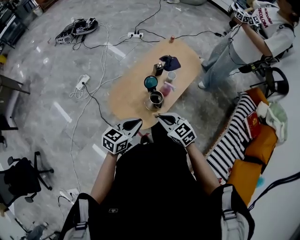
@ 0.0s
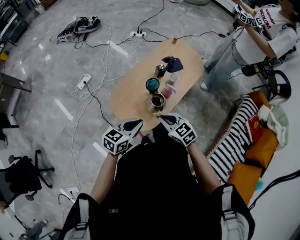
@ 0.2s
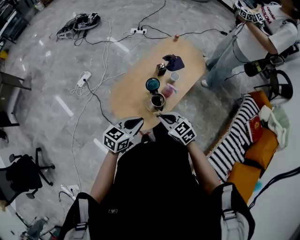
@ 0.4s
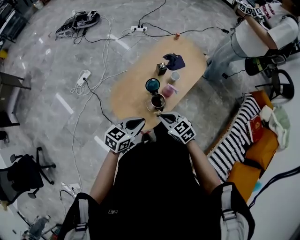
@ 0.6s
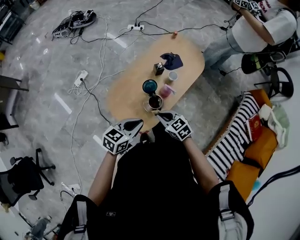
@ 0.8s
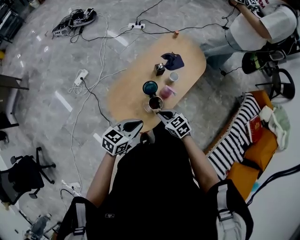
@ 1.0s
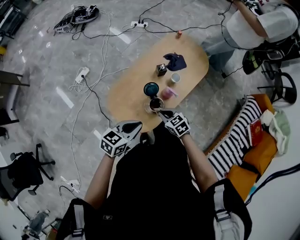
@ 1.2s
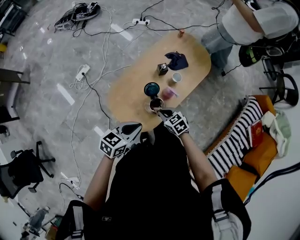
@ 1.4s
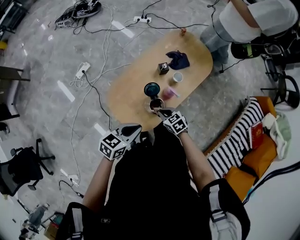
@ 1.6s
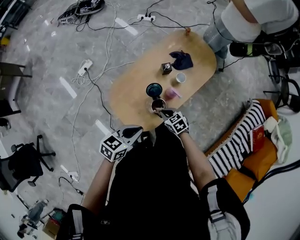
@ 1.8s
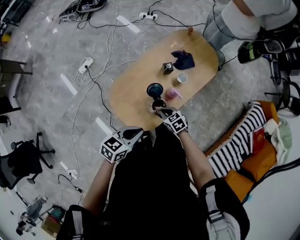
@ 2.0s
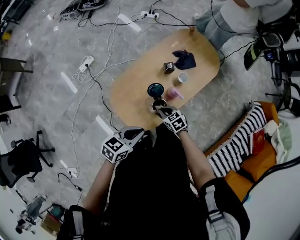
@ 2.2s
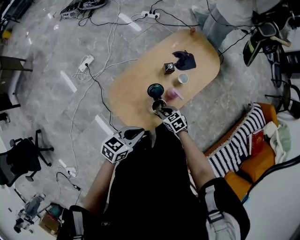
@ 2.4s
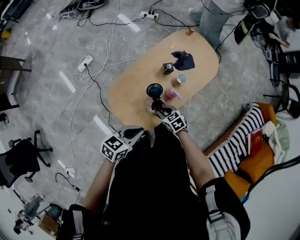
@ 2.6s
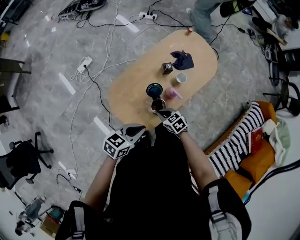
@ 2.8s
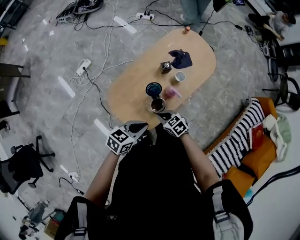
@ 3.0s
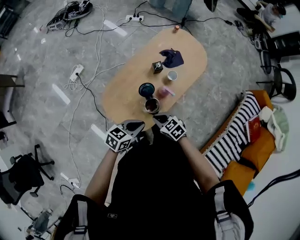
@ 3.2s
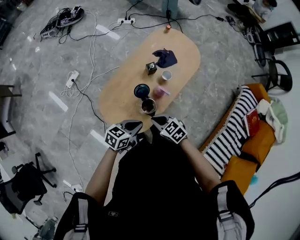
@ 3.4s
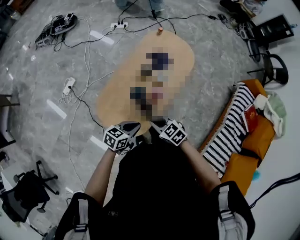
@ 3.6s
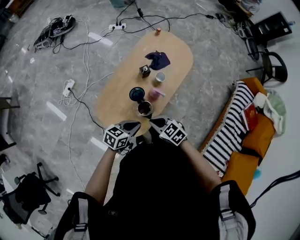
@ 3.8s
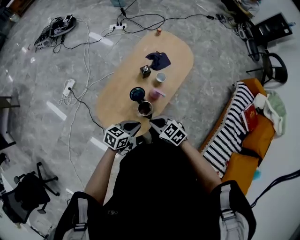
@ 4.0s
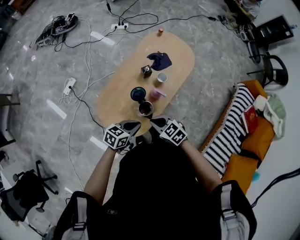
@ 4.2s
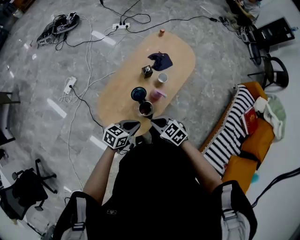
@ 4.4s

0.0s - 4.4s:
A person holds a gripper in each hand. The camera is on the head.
0.0s - 1.4s: The right gripper is displaced downward and forward by some 20 cm, while the left gripper shifts roughly 10 cm forward.
1.4s - 3.0s: There are only small adjustments of the grippers.
3.0s - 4.4s: The right gripper goes roughly 10 cm upward.

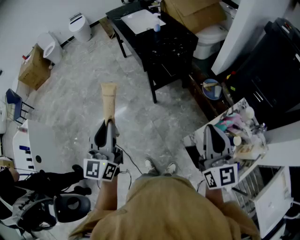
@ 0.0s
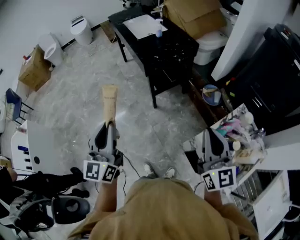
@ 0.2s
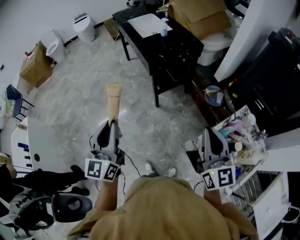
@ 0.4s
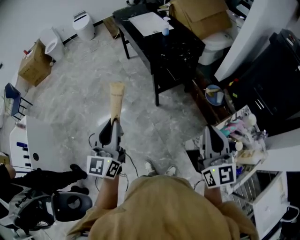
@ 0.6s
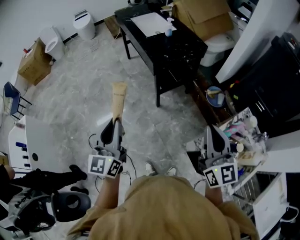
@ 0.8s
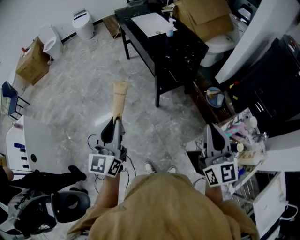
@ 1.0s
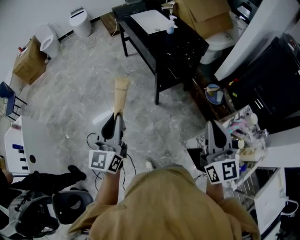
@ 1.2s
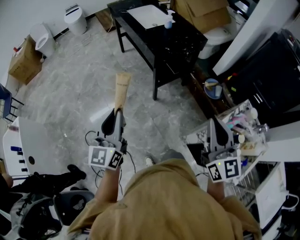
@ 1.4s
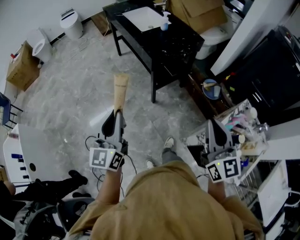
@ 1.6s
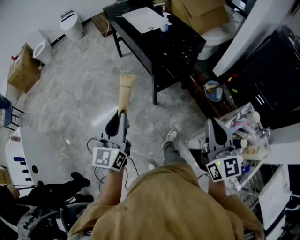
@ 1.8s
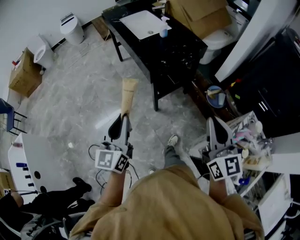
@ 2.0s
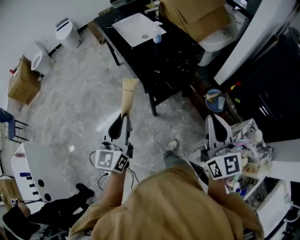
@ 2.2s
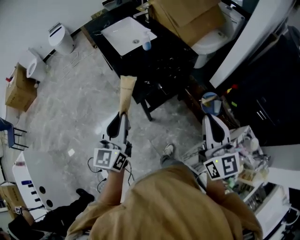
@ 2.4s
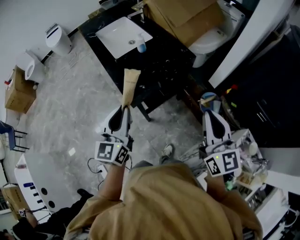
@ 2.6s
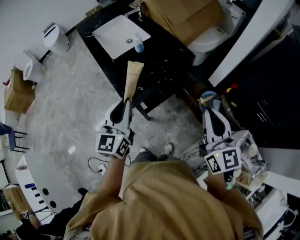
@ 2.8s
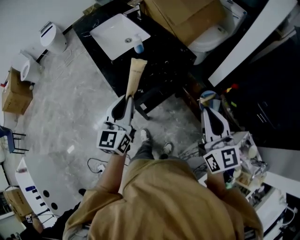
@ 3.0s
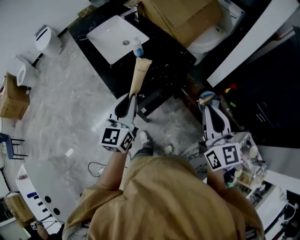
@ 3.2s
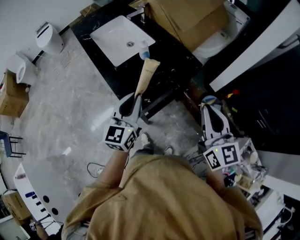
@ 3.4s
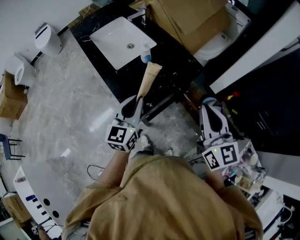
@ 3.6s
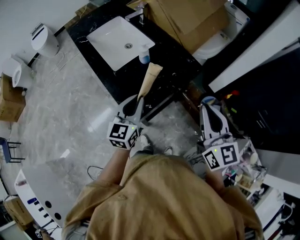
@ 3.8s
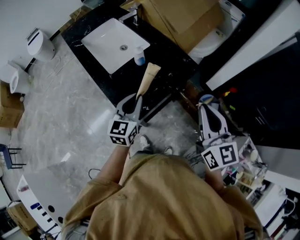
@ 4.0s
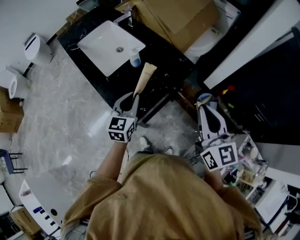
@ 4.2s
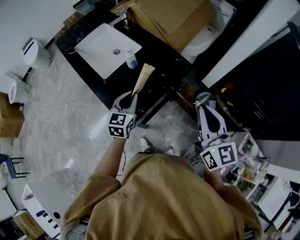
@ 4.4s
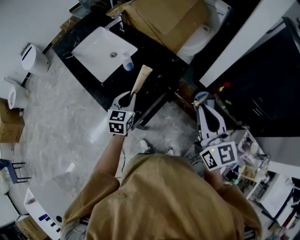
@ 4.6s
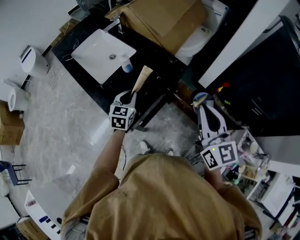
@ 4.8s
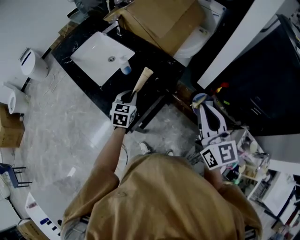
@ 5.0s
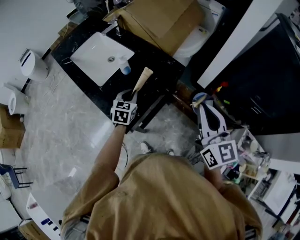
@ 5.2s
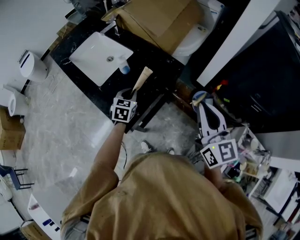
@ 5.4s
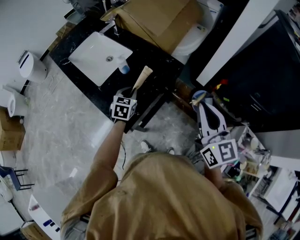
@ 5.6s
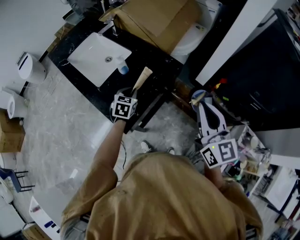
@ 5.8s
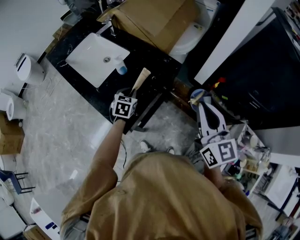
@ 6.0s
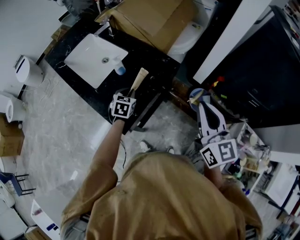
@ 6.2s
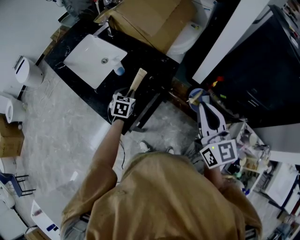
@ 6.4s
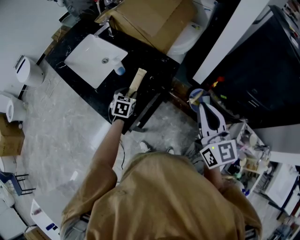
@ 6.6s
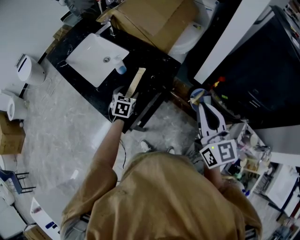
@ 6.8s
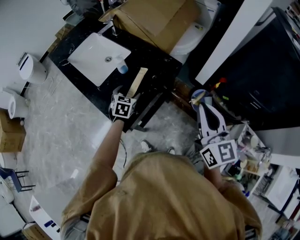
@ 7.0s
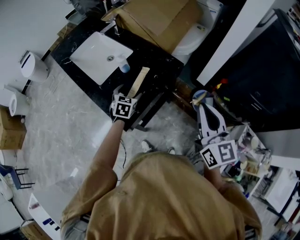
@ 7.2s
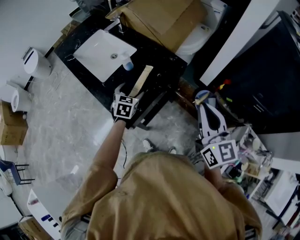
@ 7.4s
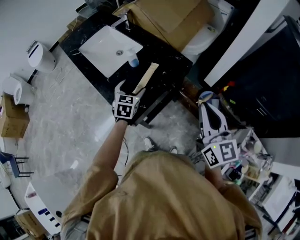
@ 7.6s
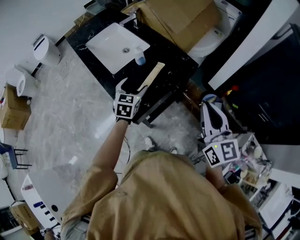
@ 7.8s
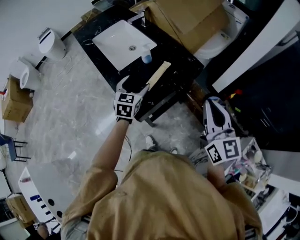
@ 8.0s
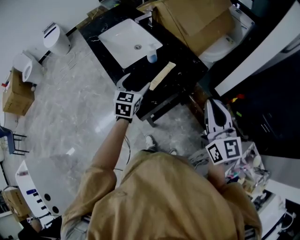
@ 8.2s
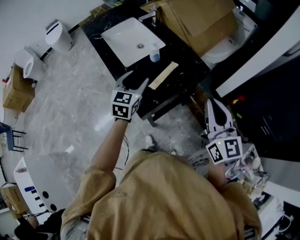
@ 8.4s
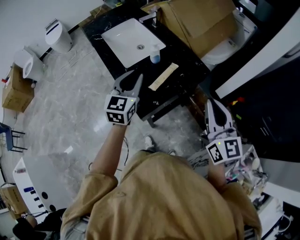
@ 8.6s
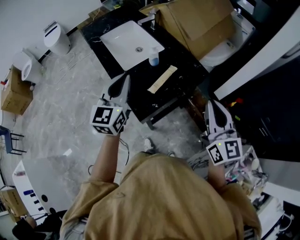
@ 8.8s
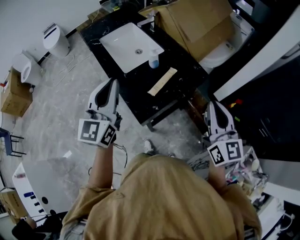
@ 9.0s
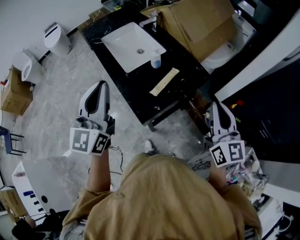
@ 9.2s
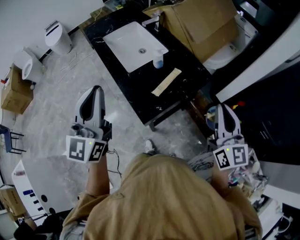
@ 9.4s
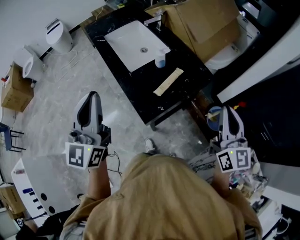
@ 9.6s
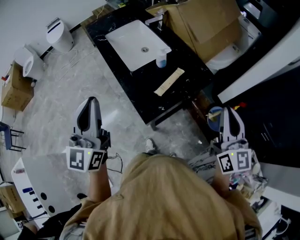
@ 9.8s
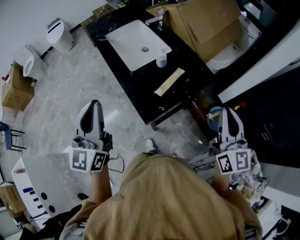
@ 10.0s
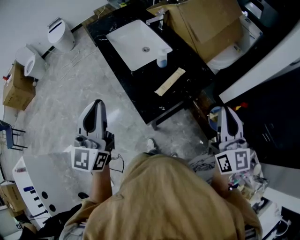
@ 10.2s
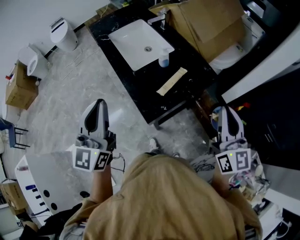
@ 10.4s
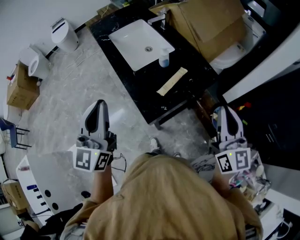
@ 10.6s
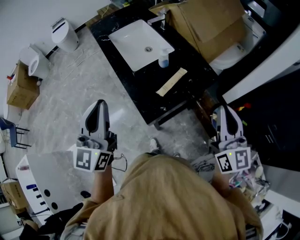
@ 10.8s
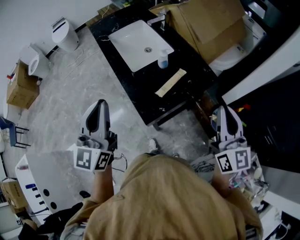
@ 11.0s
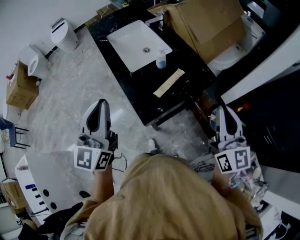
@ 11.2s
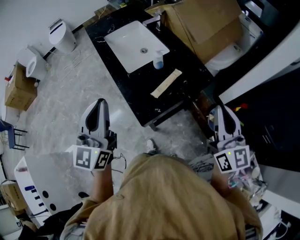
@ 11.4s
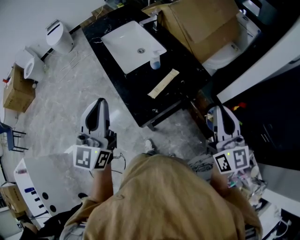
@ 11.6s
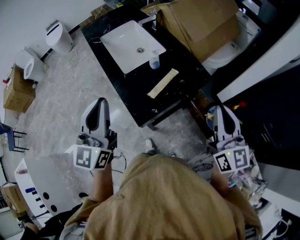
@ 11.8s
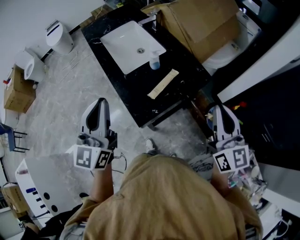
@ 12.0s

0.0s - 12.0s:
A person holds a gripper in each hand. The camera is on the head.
0.0s - 1.6s: The left gripper travels to the left and forward by about 15 cm; the right gripper travels to the left by approximately 15 cm.
1.6s - 3.0s: The pair of grippers is taken forward, about 50 cm.
3.0s - 4.4s: The right gripper travels forward by some 10 cm. The left gripper travels forward and downward by some 20 cm, and turns by some 20 degrees.
4.4s - 6.0s: The left gripper is displaced downward and forward by roughly 10 cm, and rotates approximately 20 degrees.
6.0s - 7.6s: The left gripper moves roughly 5 cm, and opens its fingers.
7.6s - 9.0s: The right gripper ends up some 5 cm from where it was. Meanwhile the left gripper shifts roughly 30 cm upward, to the left and backward, points its fingers some 40 degrees further upward, and closes up.
9.0s - 10.4s: The left gripper travels backward and to the left by approximately 10 cm.
10.4s - 12.0s: The left gripper ends up about 5 cm from where it was.

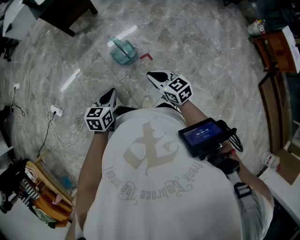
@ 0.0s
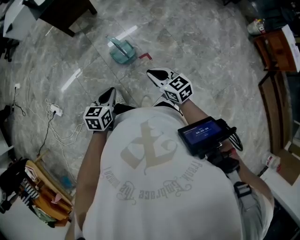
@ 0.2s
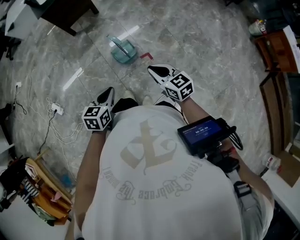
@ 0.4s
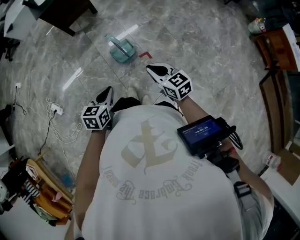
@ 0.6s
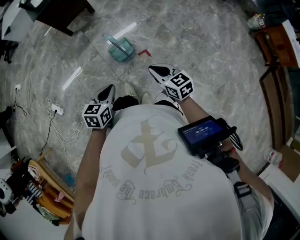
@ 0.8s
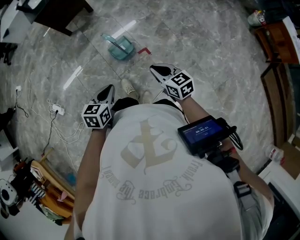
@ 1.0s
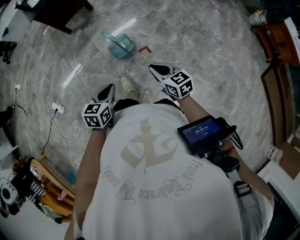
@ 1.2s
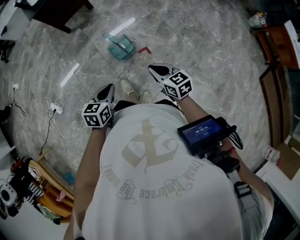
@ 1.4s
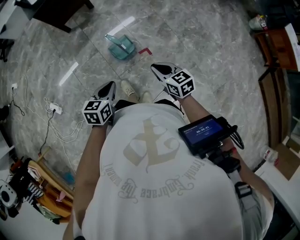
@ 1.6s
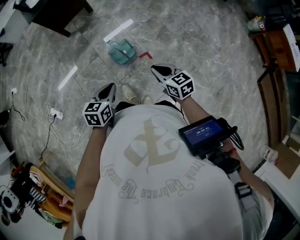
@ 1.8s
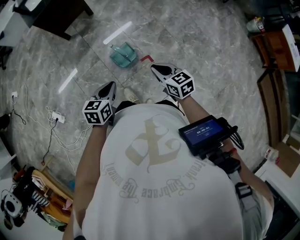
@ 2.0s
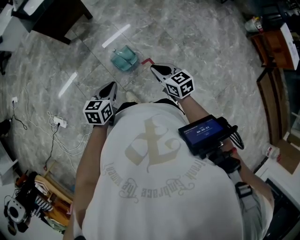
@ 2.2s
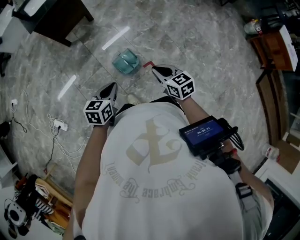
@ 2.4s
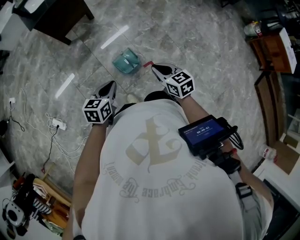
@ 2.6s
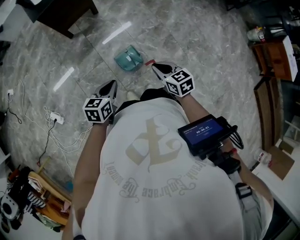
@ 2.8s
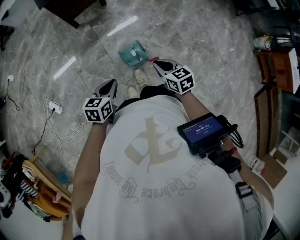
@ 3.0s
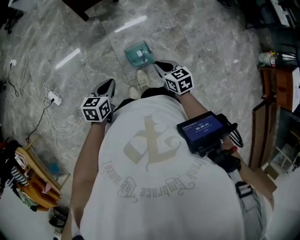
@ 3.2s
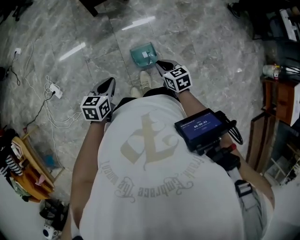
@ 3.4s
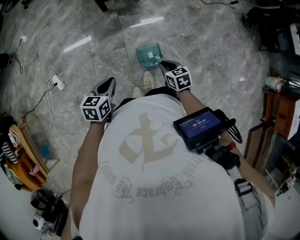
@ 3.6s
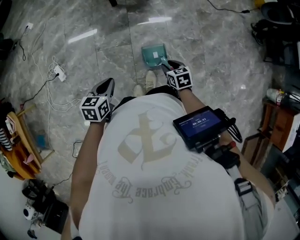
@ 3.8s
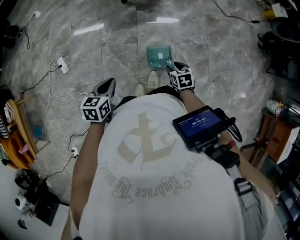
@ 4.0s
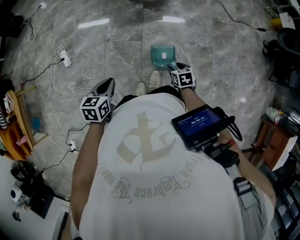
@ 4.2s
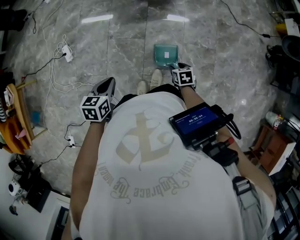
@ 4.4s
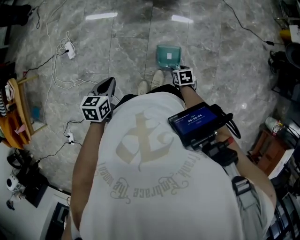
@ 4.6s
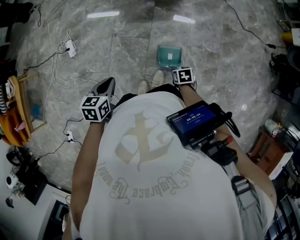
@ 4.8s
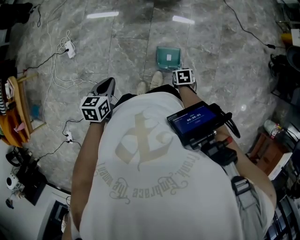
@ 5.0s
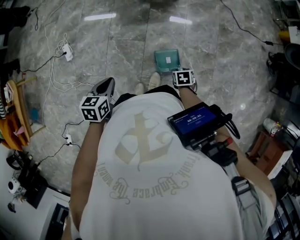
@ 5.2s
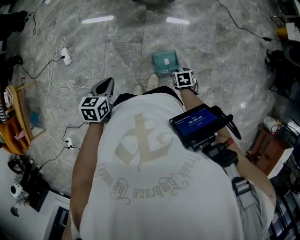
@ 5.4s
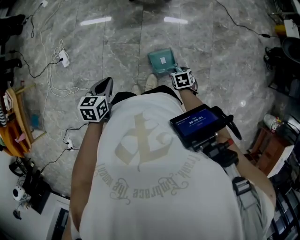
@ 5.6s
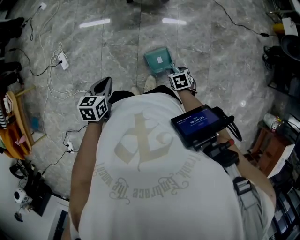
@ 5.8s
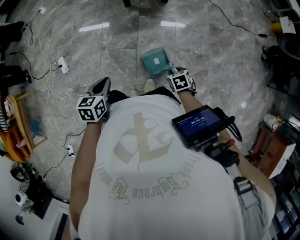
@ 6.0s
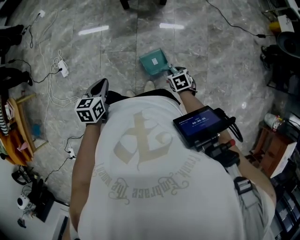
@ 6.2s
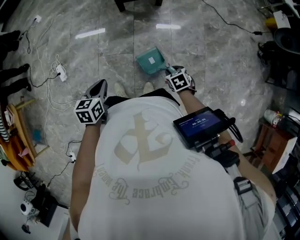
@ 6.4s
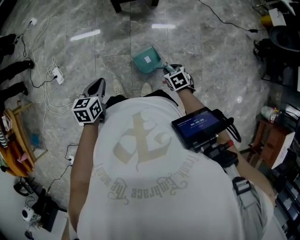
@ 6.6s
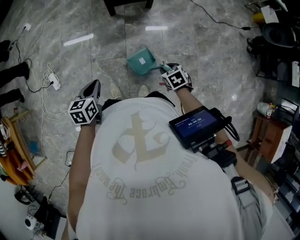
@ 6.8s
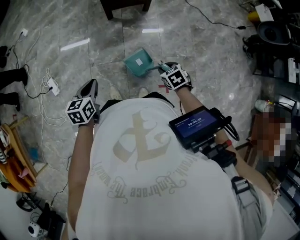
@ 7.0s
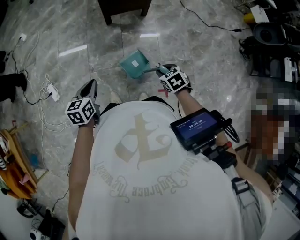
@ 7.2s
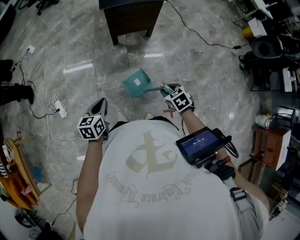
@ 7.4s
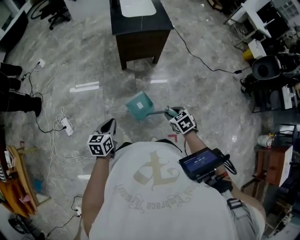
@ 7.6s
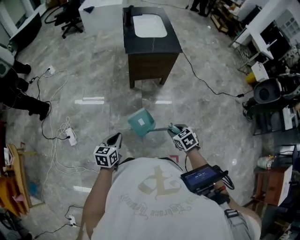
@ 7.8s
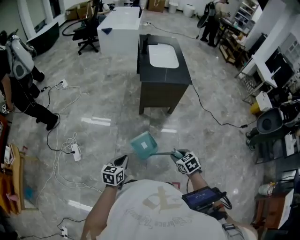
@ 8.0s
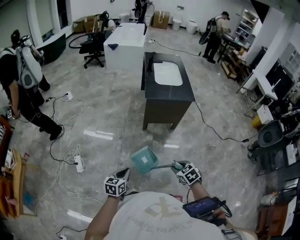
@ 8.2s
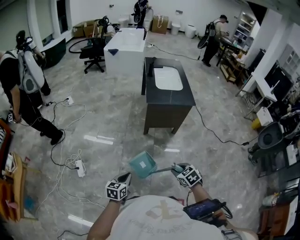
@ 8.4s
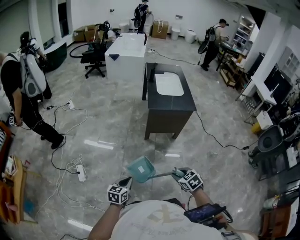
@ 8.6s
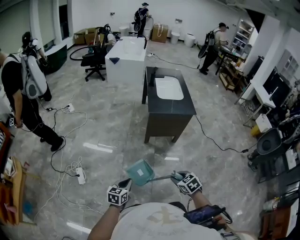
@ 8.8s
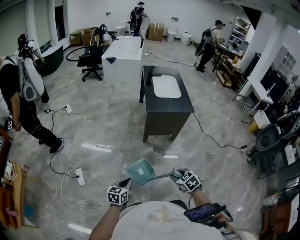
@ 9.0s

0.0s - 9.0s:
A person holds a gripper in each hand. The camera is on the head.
0.0s - 1.6s: Both grippers travel together forward, some 5 cm.
1.6s - 3.0s: The left gripper goes roughly 15 cm to the left and forward. The right gripper heads forward and to the left, covering approximately 15 cm.
3.0s - 4.4s: The left gripper ends up some 15 cm from where it was, and turns by roughly 30 degrees; the right gripper shifts approximately 15 cm downward, rotates some 30 degrees, and opens its fingers.
4.4s - 6.0s: The right gripper moves some 10 cm, and closes its fingers, while the left gripper moves about 10 cm.
6.0s - 7.6s: The left gripper goes roughly 15 cm forward and to the left. Meanwhile the right gripper shifts approximately 20 cm upward, to the left and forward.
7.6s - 9.0s: The right gripper shifts approximately 15 cm to the left and upward; the left gripper heads to the left, covering about 10 cm.
